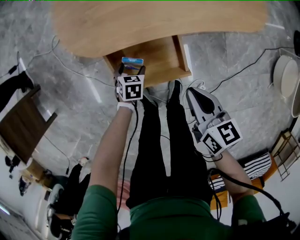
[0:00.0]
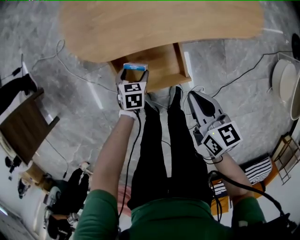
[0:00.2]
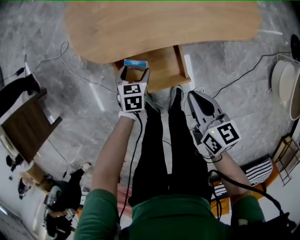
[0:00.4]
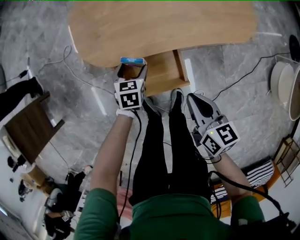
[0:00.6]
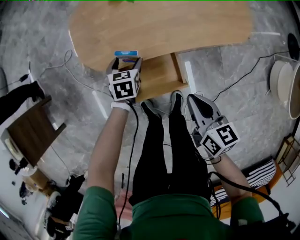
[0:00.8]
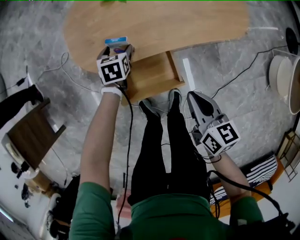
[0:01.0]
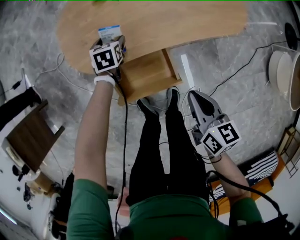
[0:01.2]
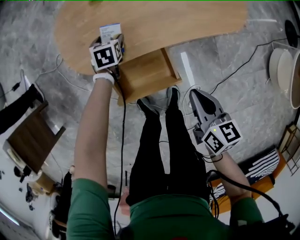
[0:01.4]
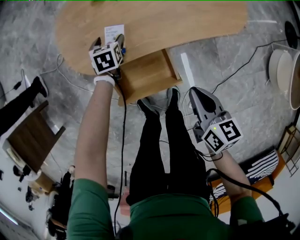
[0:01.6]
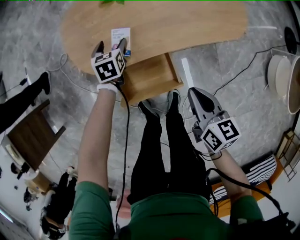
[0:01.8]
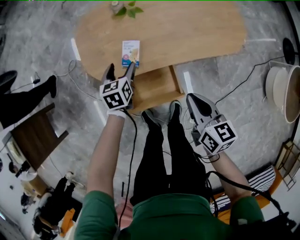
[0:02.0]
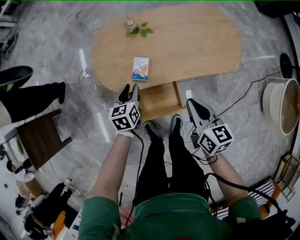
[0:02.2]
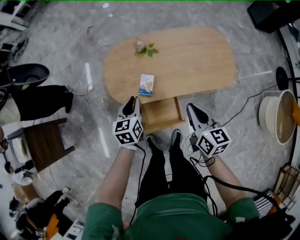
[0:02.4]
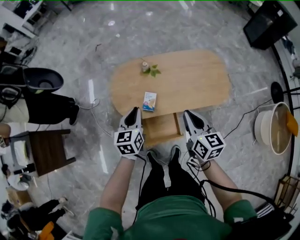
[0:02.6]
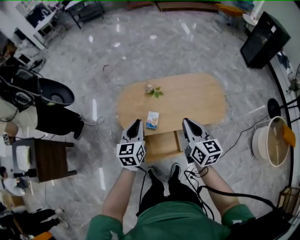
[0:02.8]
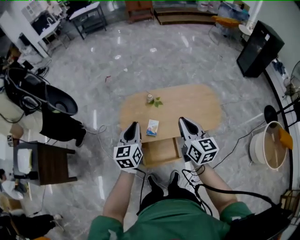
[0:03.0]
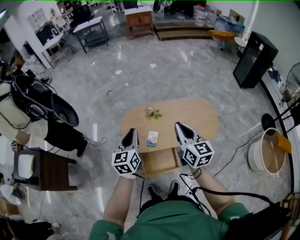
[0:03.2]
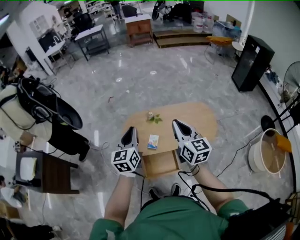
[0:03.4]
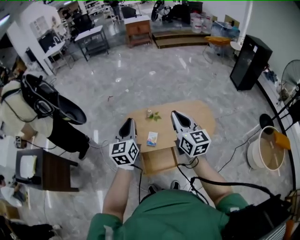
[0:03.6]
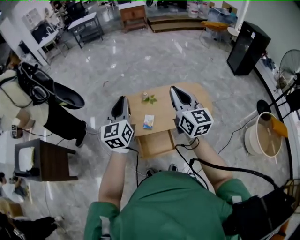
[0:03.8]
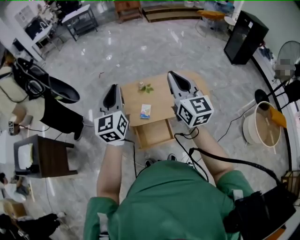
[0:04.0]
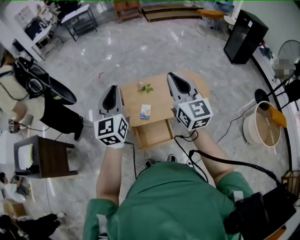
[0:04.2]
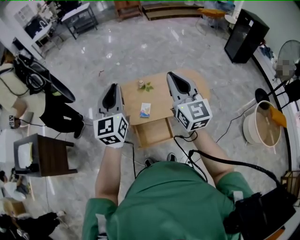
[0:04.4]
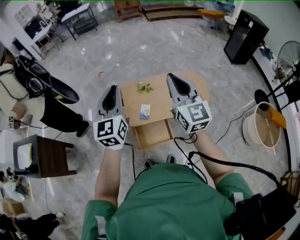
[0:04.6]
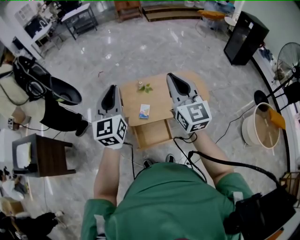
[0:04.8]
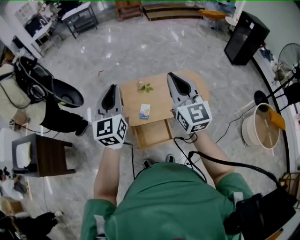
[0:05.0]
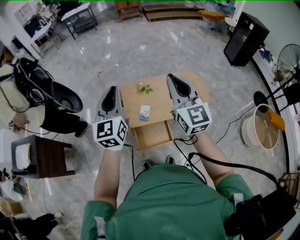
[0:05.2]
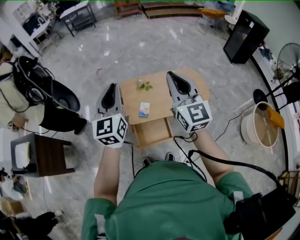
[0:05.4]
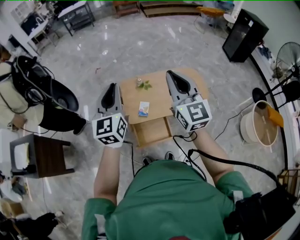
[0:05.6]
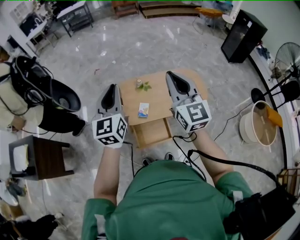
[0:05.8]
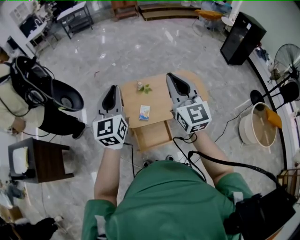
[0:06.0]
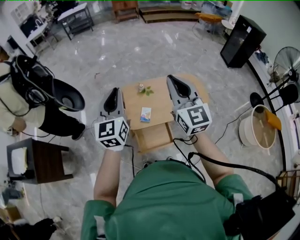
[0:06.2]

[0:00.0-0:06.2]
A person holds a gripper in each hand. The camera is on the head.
0:00.0 to 0:01.6: The left gripper goes roughly 25 cm forward and upward, while the right gripper goes some 5 cm to the right.
0:01.6 to 0:03.2: The grippers both shift upward by some 50 cm. The right gripper rotates some 40 degrees, while the left gripper tips its fingers upward by approximately 40 degrees, and closes up.
0:03.2 to 0:04.6: The two grippers go some 15 cm upward. The left gripper swivels some 20 degrees. Meanwhile the right gripper swivels some 20 degrees.
0:04.6 to 0:06.2: The two grippers go approximately 5 cm to the left.

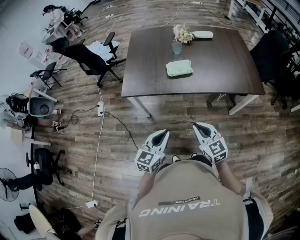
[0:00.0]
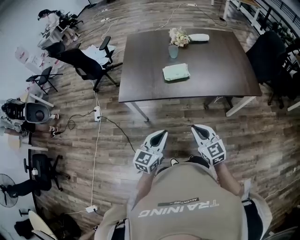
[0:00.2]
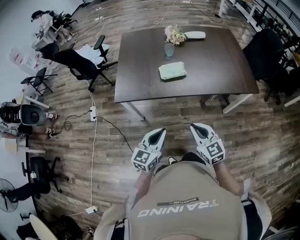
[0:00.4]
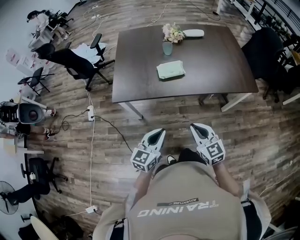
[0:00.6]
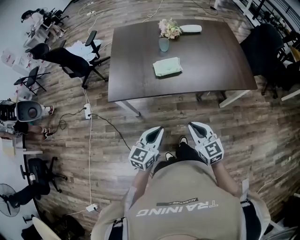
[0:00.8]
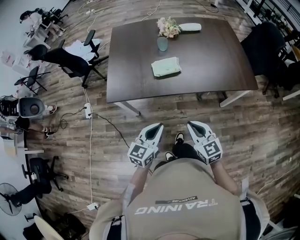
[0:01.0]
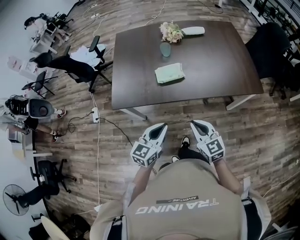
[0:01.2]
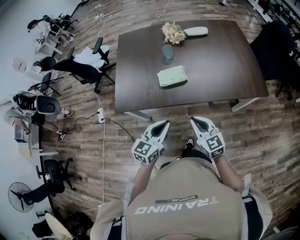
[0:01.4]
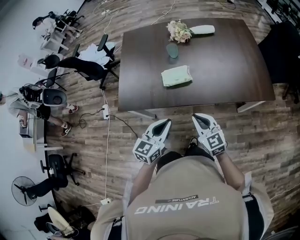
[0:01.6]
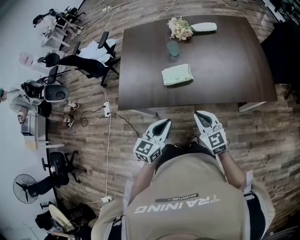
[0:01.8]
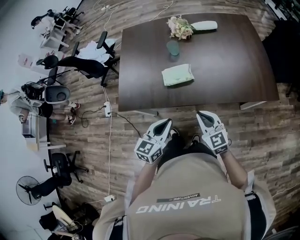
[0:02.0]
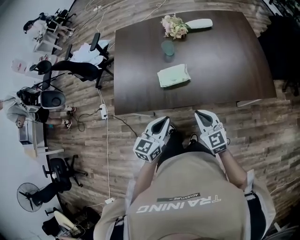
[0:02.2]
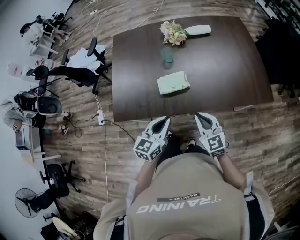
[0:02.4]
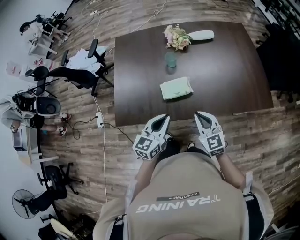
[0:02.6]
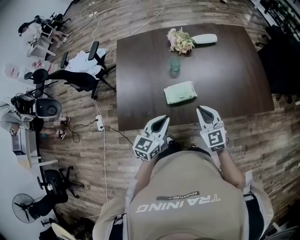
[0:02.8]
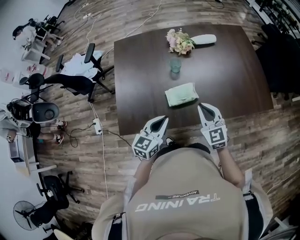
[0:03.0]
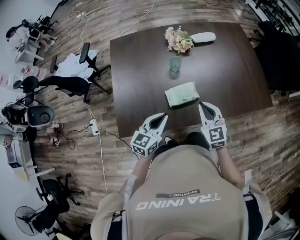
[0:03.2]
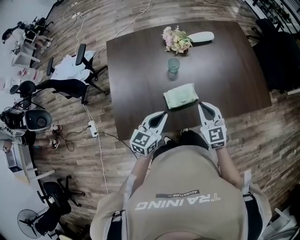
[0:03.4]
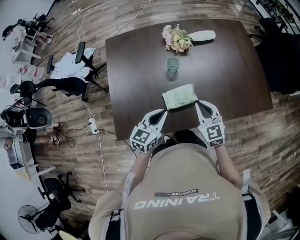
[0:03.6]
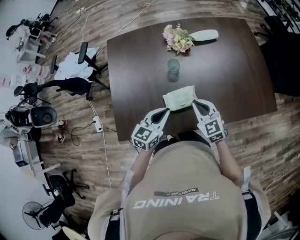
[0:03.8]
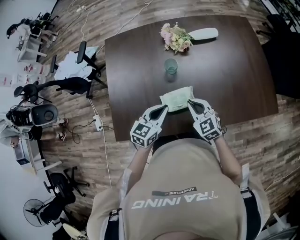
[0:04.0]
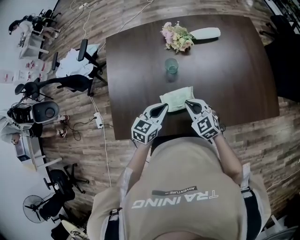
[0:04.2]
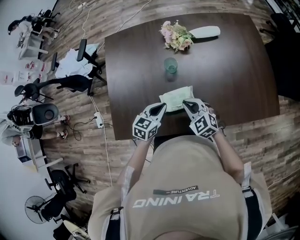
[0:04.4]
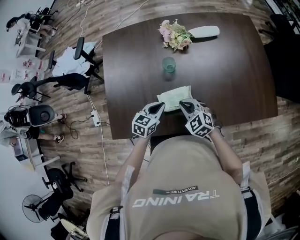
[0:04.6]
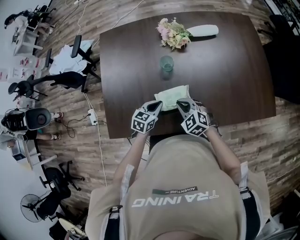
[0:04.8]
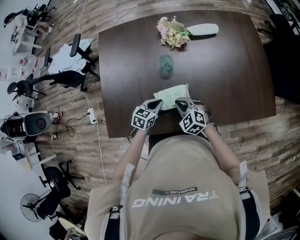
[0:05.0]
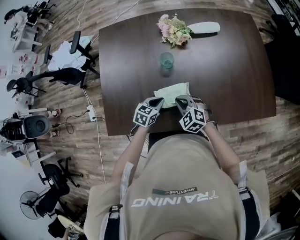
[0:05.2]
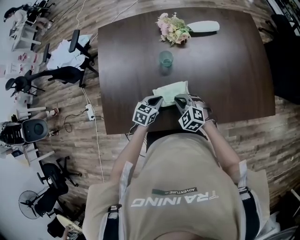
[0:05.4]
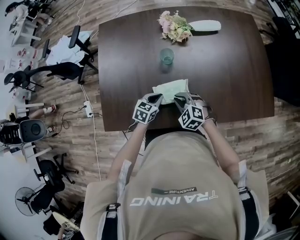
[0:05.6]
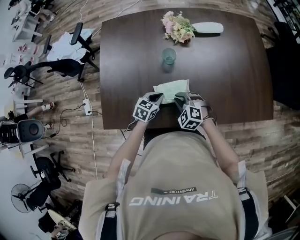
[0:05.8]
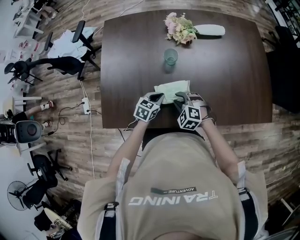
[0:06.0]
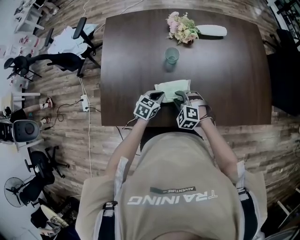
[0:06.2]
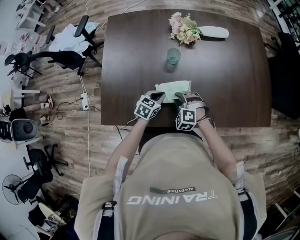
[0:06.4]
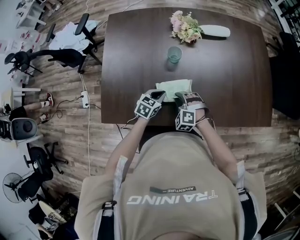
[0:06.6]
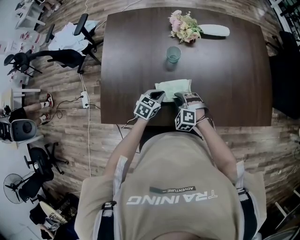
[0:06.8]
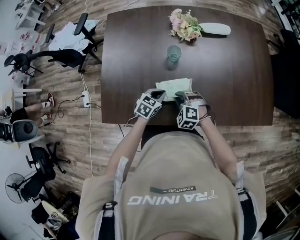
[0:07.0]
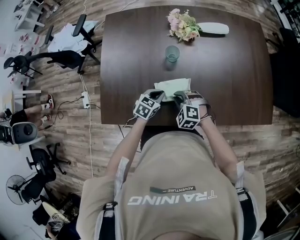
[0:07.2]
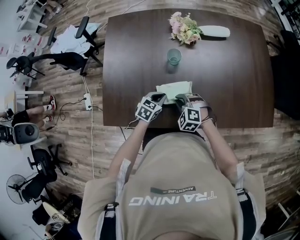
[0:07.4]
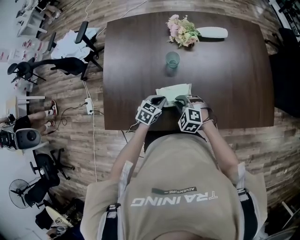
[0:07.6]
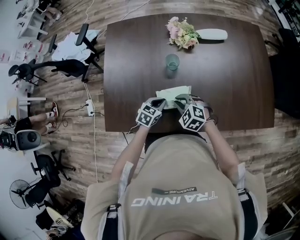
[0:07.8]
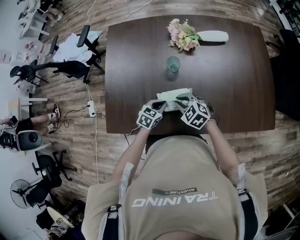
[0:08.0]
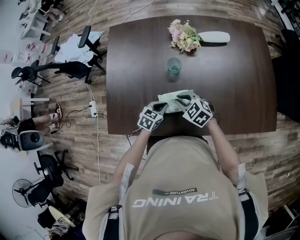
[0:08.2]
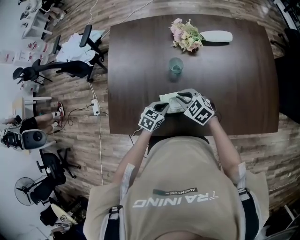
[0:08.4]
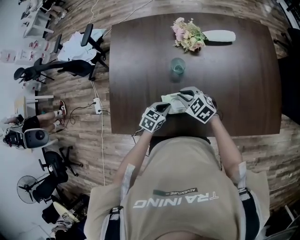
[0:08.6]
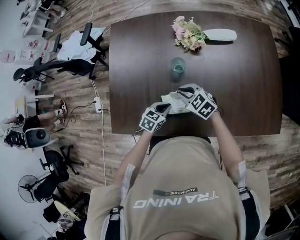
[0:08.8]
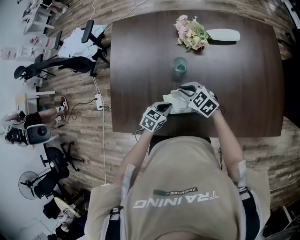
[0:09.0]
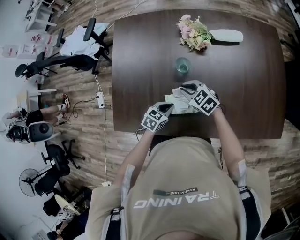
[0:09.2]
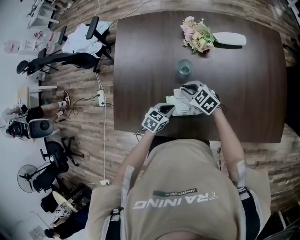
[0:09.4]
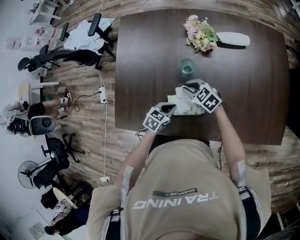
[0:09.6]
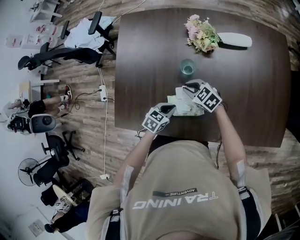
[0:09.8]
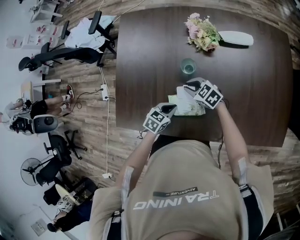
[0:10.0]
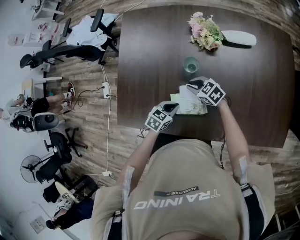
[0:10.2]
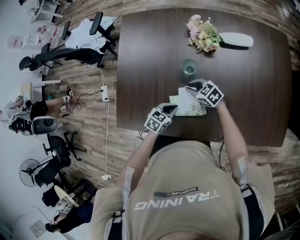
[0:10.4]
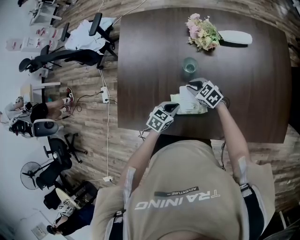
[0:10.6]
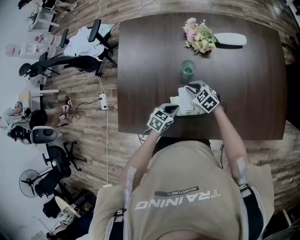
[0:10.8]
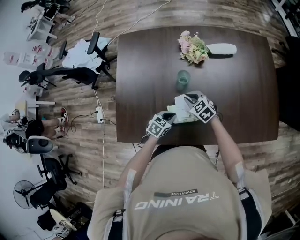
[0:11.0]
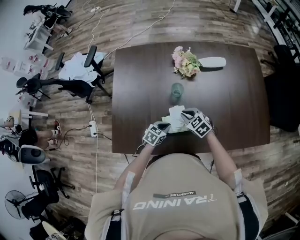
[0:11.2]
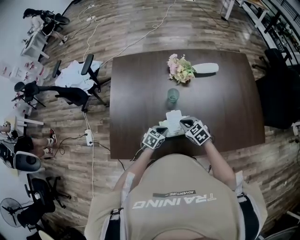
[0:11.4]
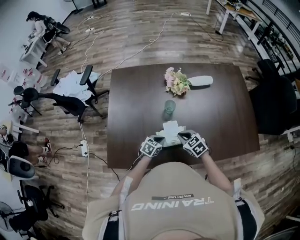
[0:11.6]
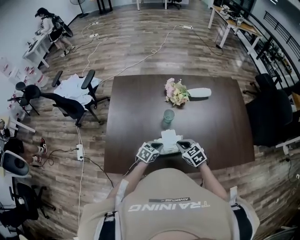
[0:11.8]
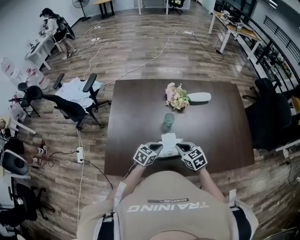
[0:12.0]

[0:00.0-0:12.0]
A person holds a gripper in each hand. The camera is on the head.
0:00.0 to 0:01.6: The two grippers go roughly 15 cm forward.
0:01.6 to 0:03.0: The left gripper shifts some 20 cm forward and to the left. Meanwhile the right gripper shifts roughly 20 cm forward.
0:03.0 to 0:04.4: The left gripper is displaced forward and downward by approximately 15 cm; the right gripper heads downward and forward, covering about 15 cm, and swivels some 30 degrees.
0:04.4 to 0:06.0: Both grippers move downward, roughly 10 cm. The right gripper changes its angle by some 30 degrees, and opens up.
0:06.0 to 0:07.6: The grippers move only a little.
0:07.6 to 0:09.0: The right gripper shifts some 10 cm forward, and turns by about 30 degrees.
0:09.0 to 0:10.4: The right gripper moves downward, about 5 cm.
0:10.4 to 0:12.0: The right gripper moves upward, some 15 cm, and rotates roughly 30 degrees. Meanwhile the left gripper goes roughly 10 cm upward.

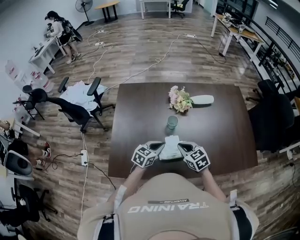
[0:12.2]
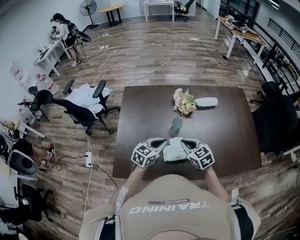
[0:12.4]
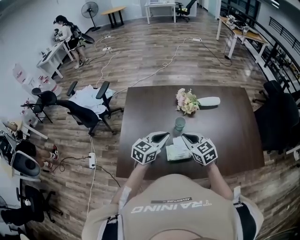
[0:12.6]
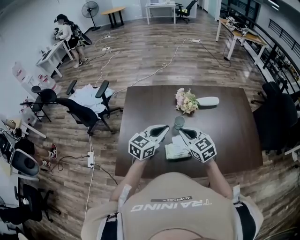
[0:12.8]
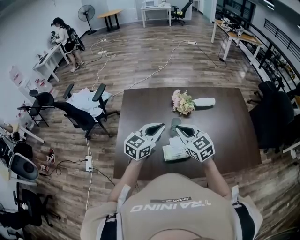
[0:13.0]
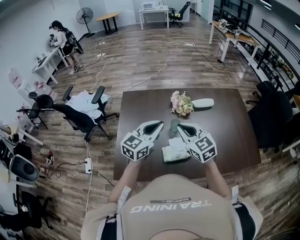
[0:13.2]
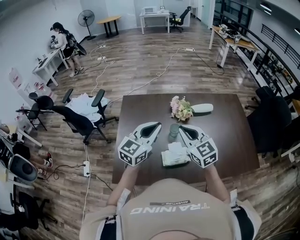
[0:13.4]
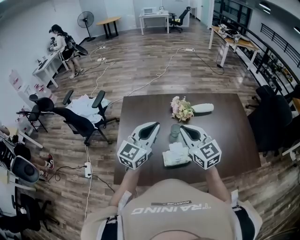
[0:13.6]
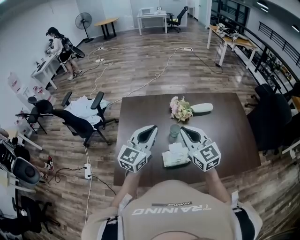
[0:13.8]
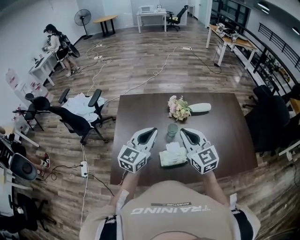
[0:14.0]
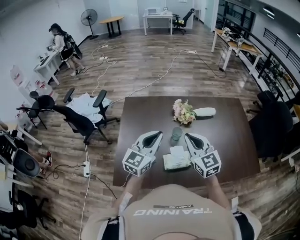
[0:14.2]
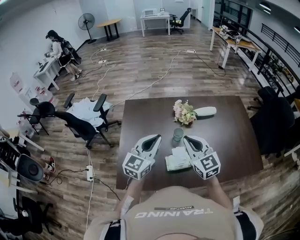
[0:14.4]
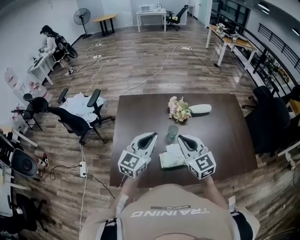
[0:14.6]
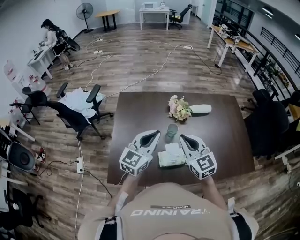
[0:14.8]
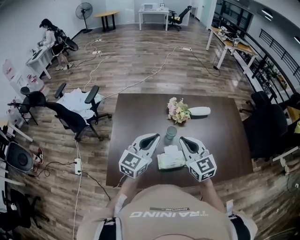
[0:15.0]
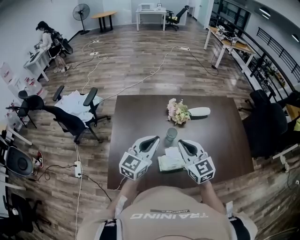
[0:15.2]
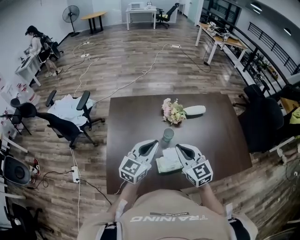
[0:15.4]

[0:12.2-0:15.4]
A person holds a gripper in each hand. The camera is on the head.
0:12.2 to 0:13.8: Both grippers travel together upward, about 25 cm. The right gripper points its fingers about 30 degrees further upward; the left gripper tilts its fingers some 30 degrees upward.
0:13.8 to 0:15.4: The grippers both shift downward by roughly 5 cm.

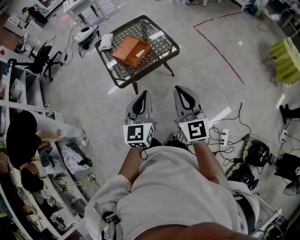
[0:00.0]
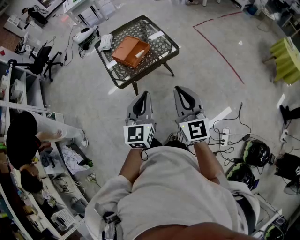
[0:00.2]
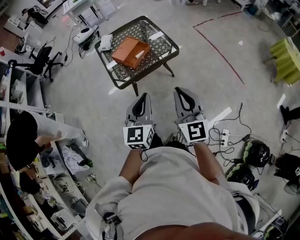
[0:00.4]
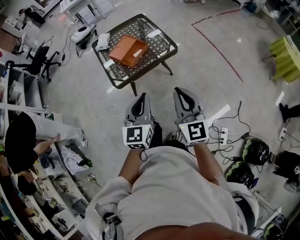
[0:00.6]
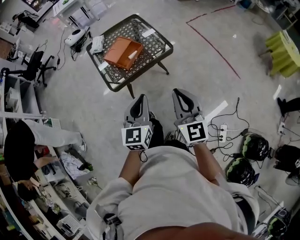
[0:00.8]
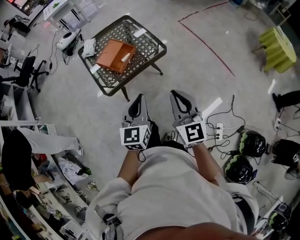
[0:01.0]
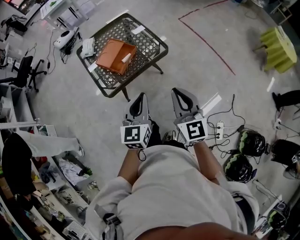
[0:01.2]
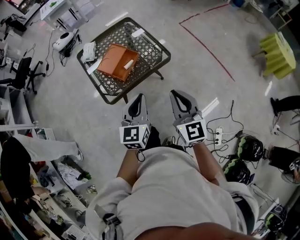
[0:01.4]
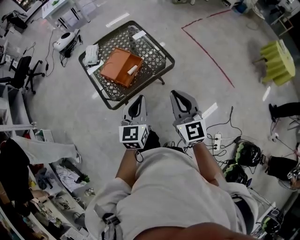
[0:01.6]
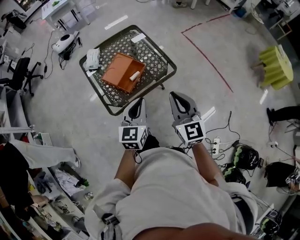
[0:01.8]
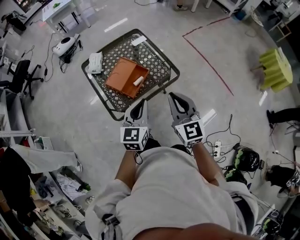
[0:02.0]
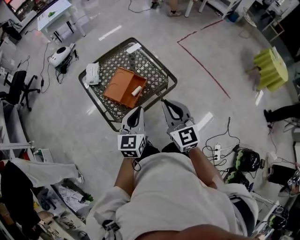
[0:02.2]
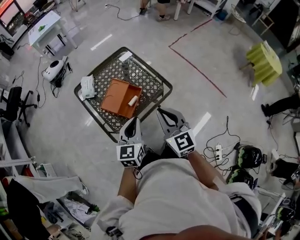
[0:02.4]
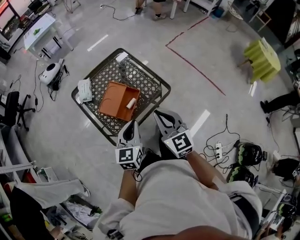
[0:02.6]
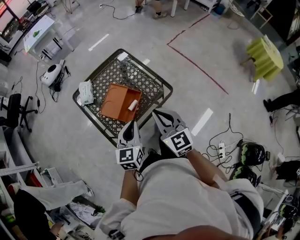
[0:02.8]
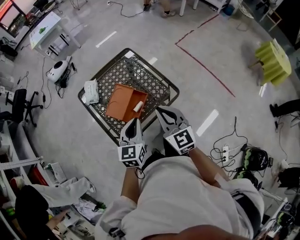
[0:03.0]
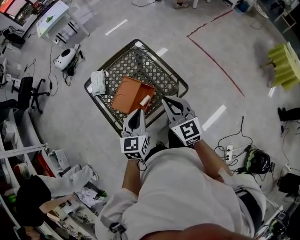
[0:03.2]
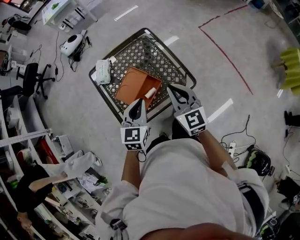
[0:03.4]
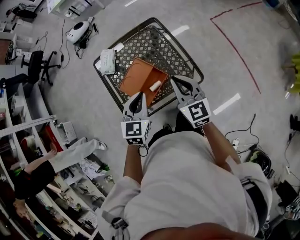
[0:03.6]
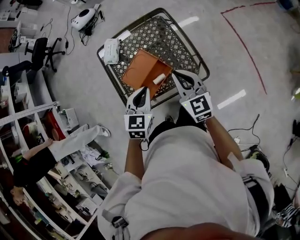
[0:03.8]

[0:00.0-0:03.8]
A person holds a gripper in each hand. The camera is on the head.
0:00.0 to 0:01.2: The grippers both shift forward by about 10 cm.
0:01.2 to 0:02.6: The grippers both shift forward and to the left by approximately 25 cm.
0:02.6 to 0:03.8: The two grippers go approximately 15 cm forward. The left gripper turns by some 20 degrees.
